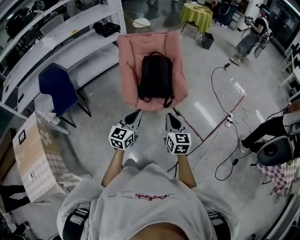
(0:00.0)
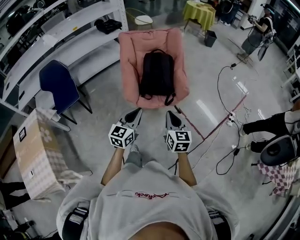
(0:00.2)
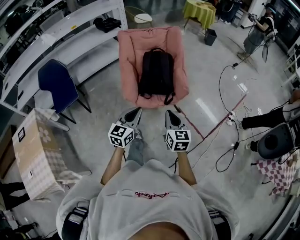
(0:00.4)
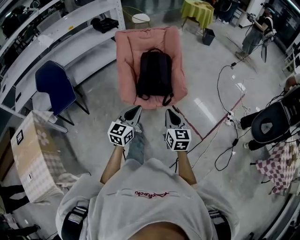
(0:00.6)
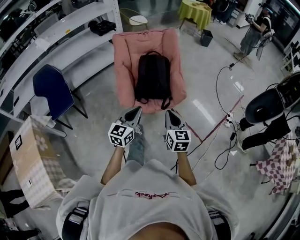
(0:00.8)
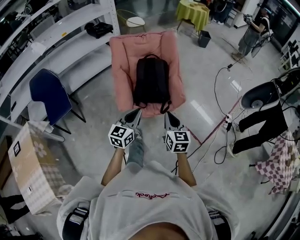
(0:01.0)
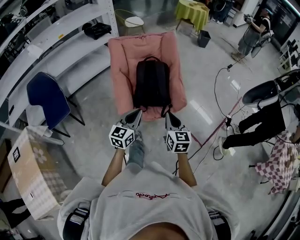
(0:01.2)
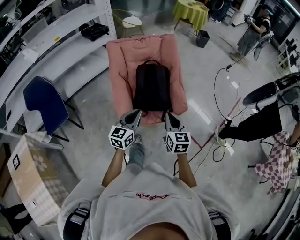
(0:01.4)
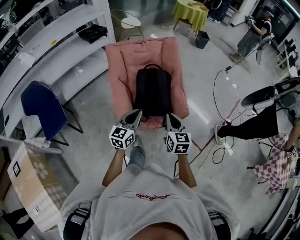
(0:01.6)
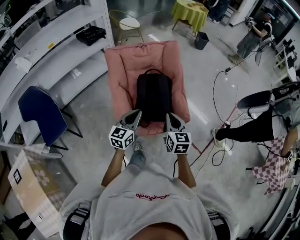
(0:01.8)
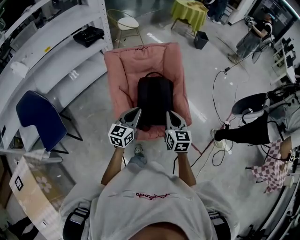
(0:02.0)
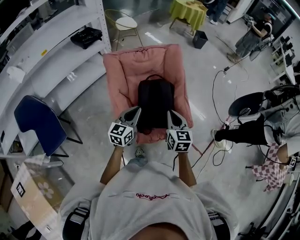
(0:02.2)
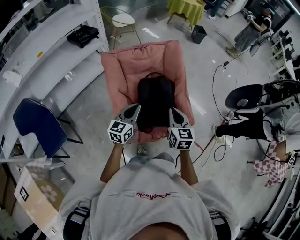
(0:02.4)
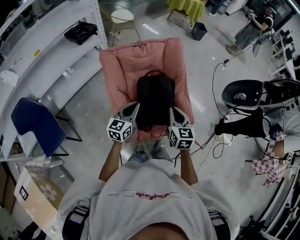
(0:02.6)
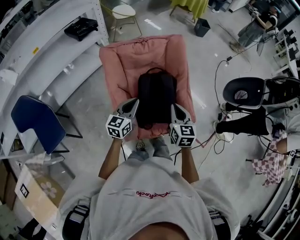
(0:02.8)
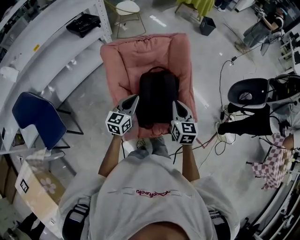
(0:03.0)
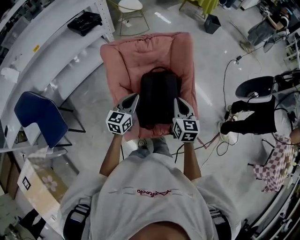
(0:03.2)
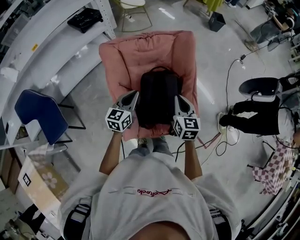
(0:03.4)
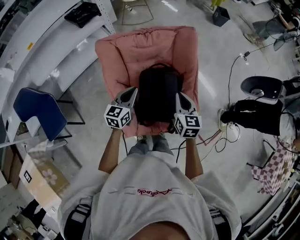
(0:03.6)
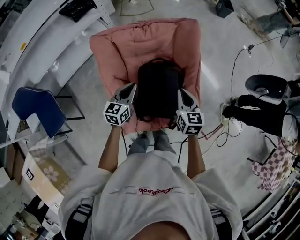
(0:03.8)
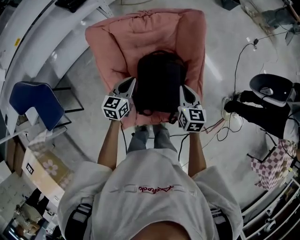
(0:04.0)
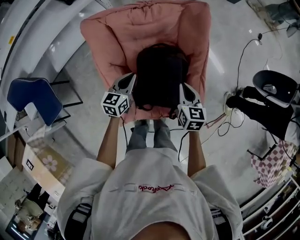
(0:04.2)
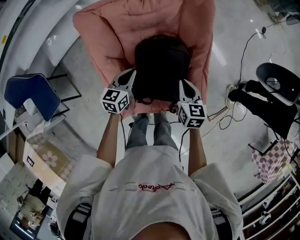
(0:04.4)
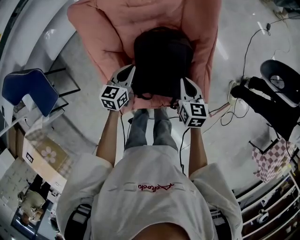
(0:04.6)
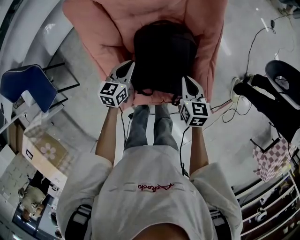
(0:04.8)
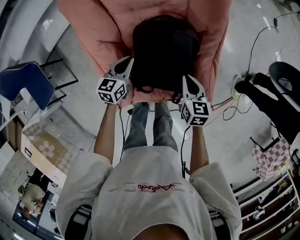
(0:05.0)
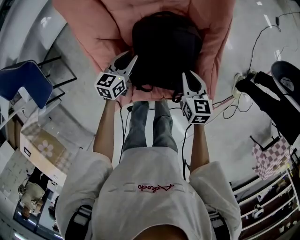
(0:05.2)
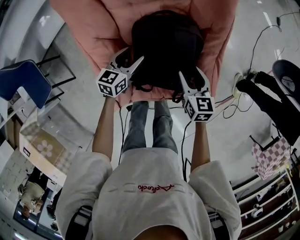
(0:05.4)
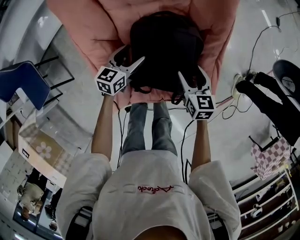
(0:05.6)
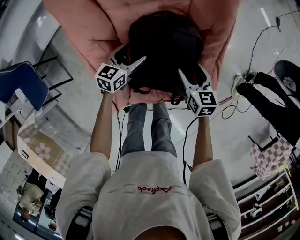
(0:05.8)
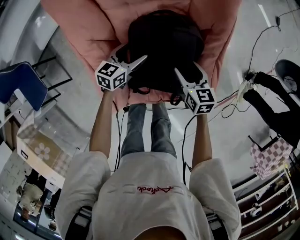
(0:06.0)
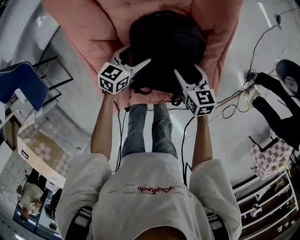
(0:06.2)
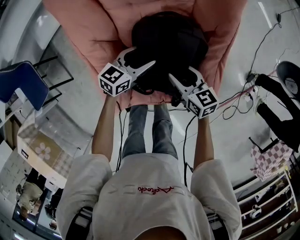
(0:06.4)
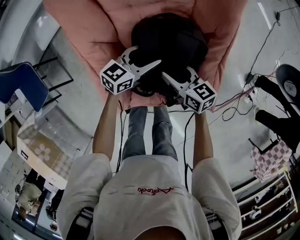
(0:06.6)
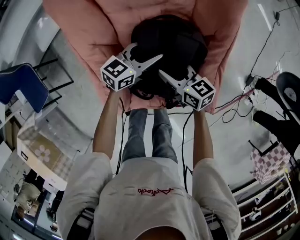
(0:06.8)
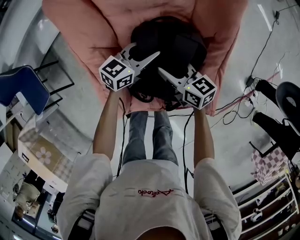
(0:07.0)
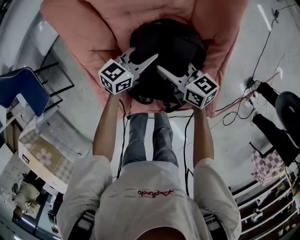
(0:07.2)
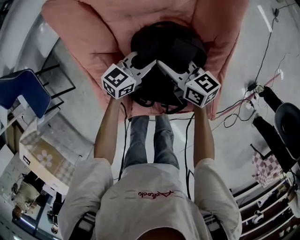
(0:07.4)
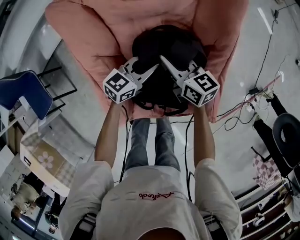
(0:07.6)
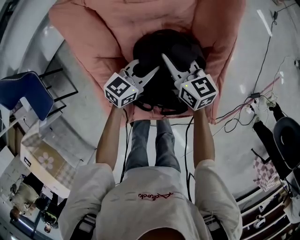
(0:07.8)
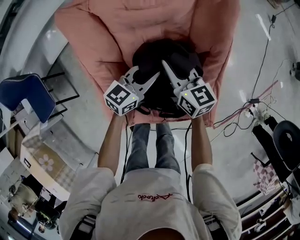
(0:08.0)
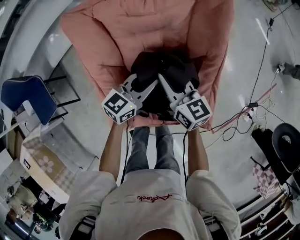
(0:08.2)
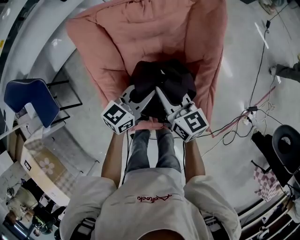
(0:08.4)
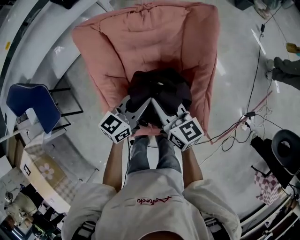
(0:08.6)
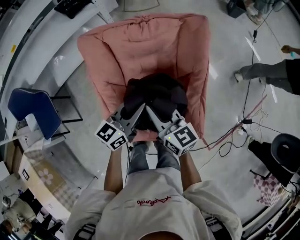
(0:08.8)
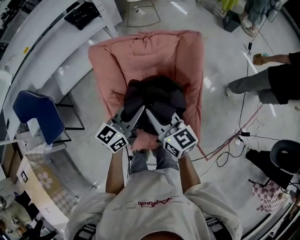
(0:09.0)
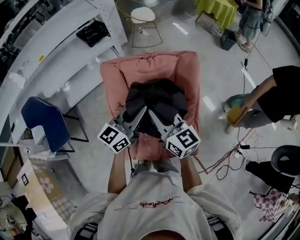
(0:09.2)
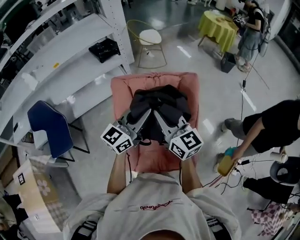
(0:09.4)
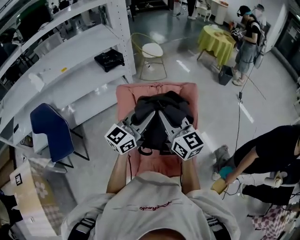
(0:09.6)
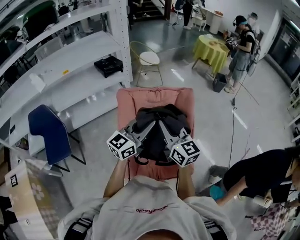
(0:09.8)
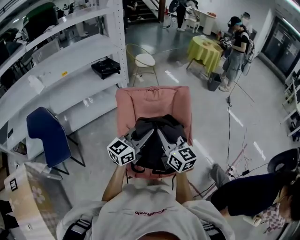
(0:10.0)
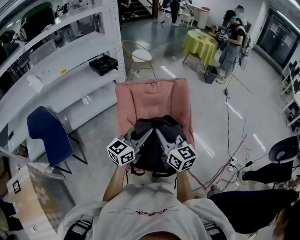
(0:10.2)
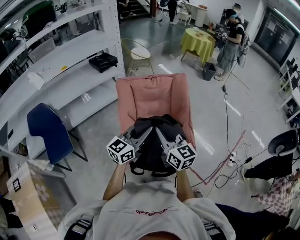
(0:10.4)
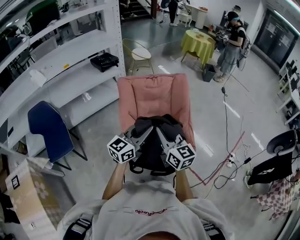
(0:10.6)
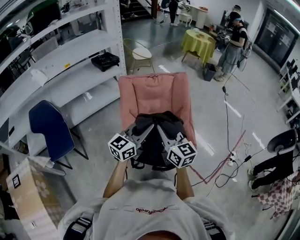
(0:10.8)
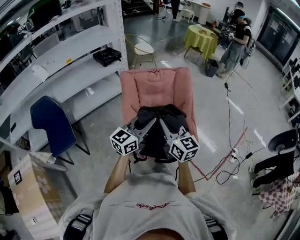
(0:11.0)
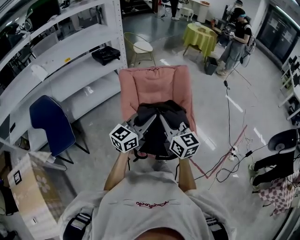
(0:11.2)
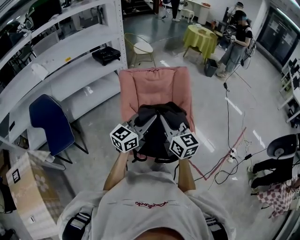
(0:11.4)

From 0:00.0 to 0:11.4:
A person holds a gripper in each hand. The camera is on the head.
From 0:00.0 to 0:01.4: The grippers both shift forward by about 20 cm.
From 0:01.4 to 0:02.8: Both grippers travel together forward and to the left, roughly 25 cm.
From 0:02.8 to 0:04.2: The left gripper heads downward and forward, covering about 20 cm, while the right gripper moves forward and downward, about 20 cm.
From 0:04.2 to 0:05.6: Both grippers move downward, about 15 cm. The left gripper opens its fingers. The right gripper opens its fingers.
From 0:05.6 to 0:07.2: The left gripper shifts some 10 cm to the right and forward, and closes its fingers, while the right gripper travels to the left and forward by some 15 cm, and turns by approximately 40 degrees.
From 0:07.2 to 0:08.6: The left gripper travels upward and backward by roughly 15 cm, while the right gripper shifts approximately 15 cm upward, and closes up.
From 0:08.6 to 0:10.0: Both grippers travel together upward and backward, about 35 cm. The left gripper swivels approximately 20 degrees, while the right gripper turns by about 20 degrees.
From 0:10.0 to 0:11.4: Both grippers travel together backward, roughly 10 cm.

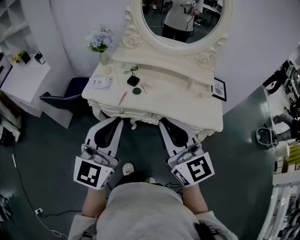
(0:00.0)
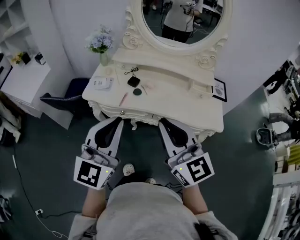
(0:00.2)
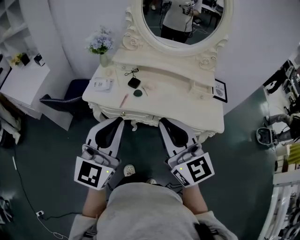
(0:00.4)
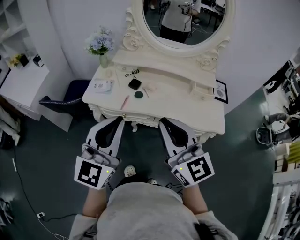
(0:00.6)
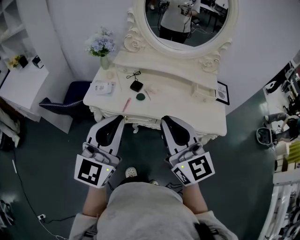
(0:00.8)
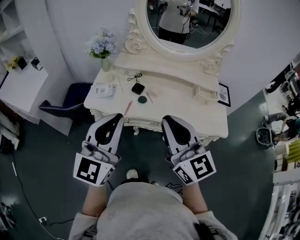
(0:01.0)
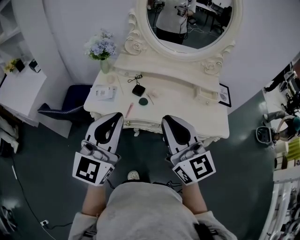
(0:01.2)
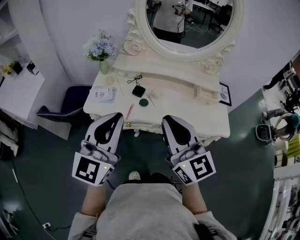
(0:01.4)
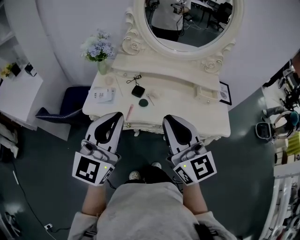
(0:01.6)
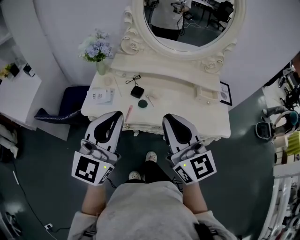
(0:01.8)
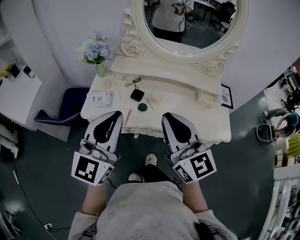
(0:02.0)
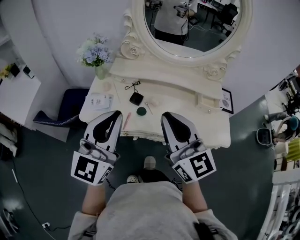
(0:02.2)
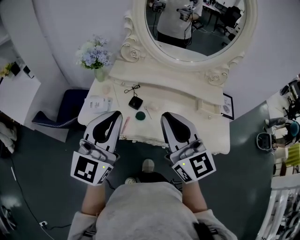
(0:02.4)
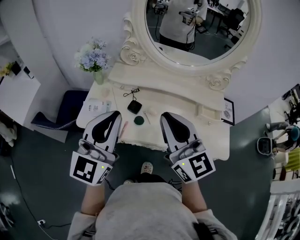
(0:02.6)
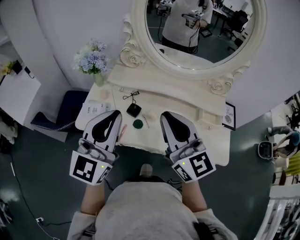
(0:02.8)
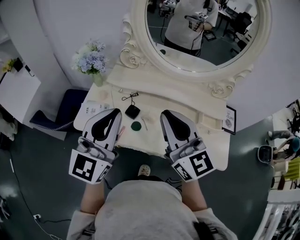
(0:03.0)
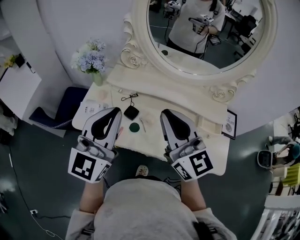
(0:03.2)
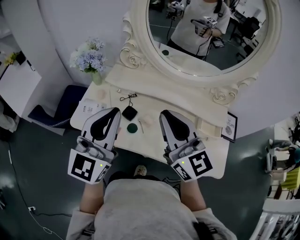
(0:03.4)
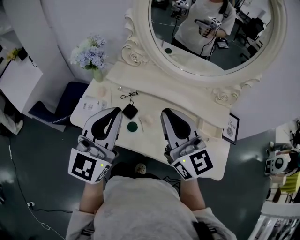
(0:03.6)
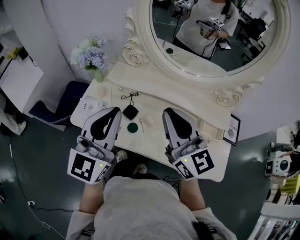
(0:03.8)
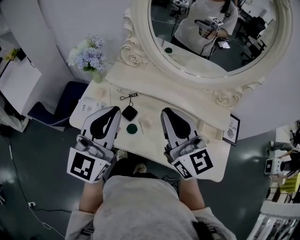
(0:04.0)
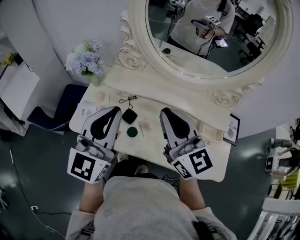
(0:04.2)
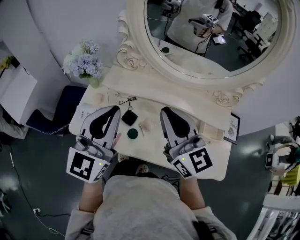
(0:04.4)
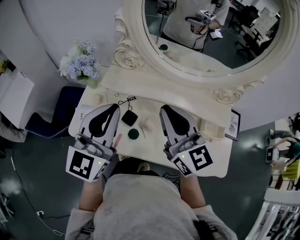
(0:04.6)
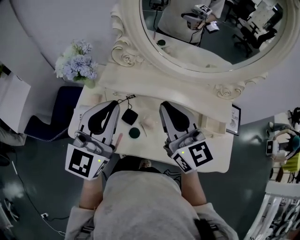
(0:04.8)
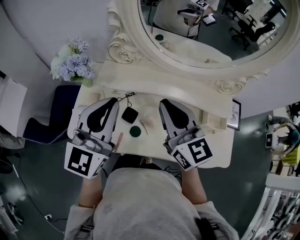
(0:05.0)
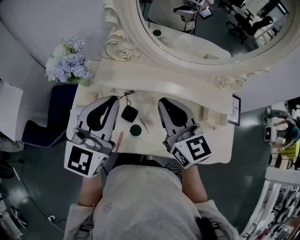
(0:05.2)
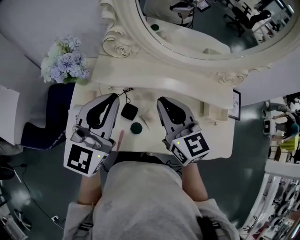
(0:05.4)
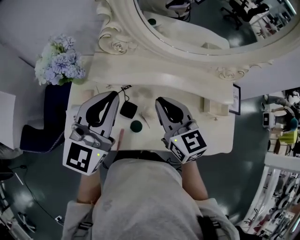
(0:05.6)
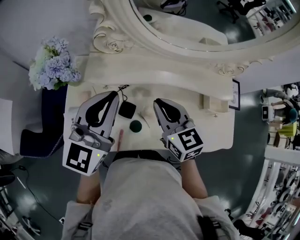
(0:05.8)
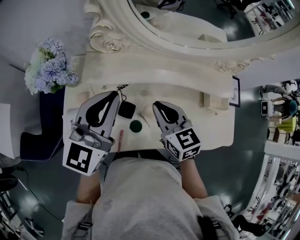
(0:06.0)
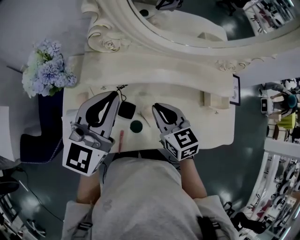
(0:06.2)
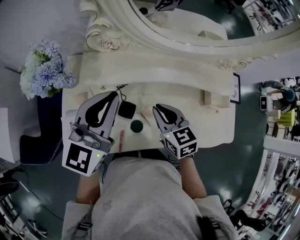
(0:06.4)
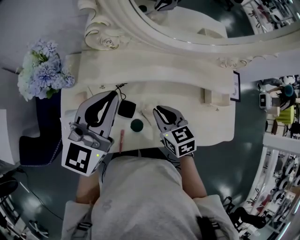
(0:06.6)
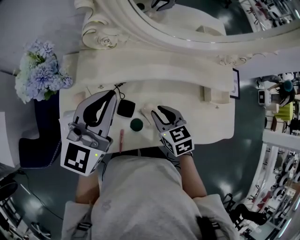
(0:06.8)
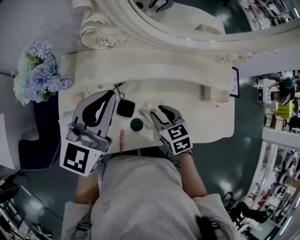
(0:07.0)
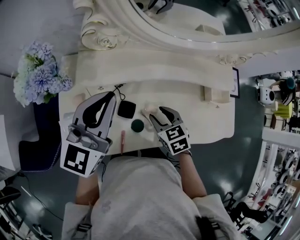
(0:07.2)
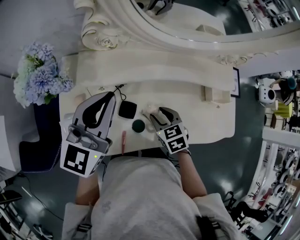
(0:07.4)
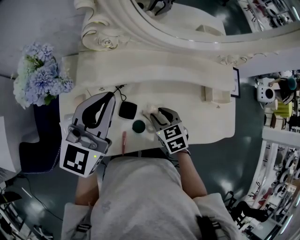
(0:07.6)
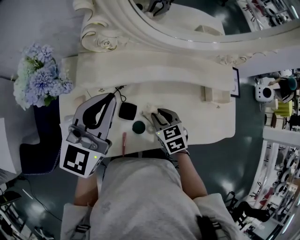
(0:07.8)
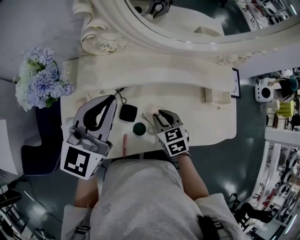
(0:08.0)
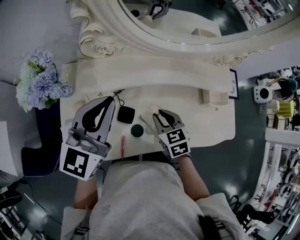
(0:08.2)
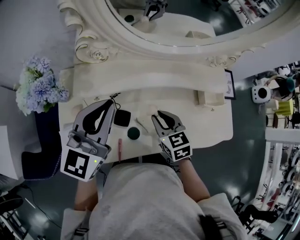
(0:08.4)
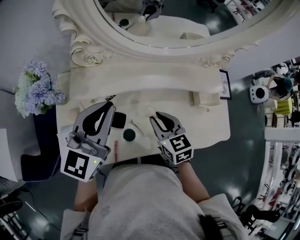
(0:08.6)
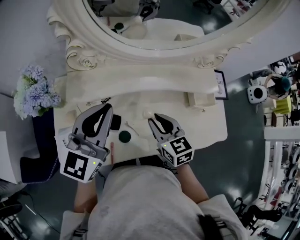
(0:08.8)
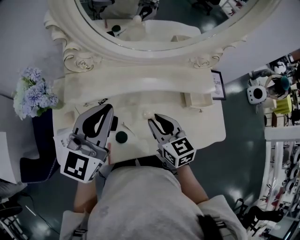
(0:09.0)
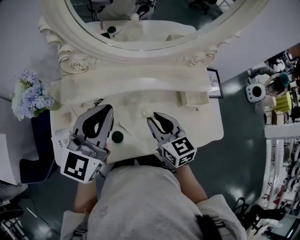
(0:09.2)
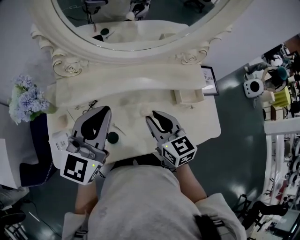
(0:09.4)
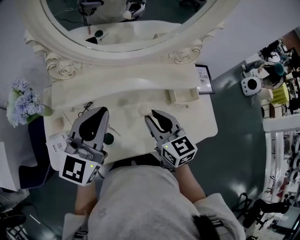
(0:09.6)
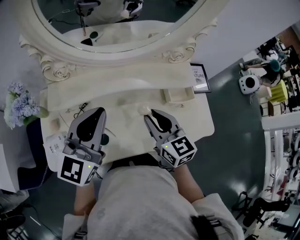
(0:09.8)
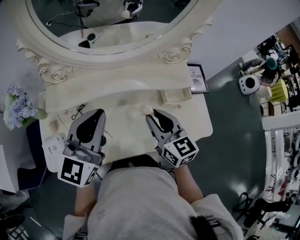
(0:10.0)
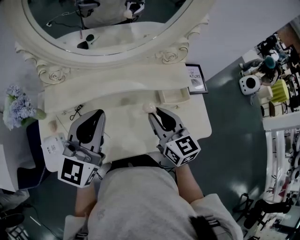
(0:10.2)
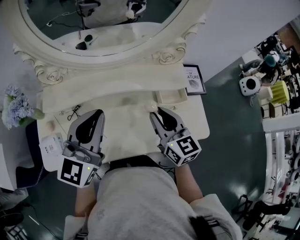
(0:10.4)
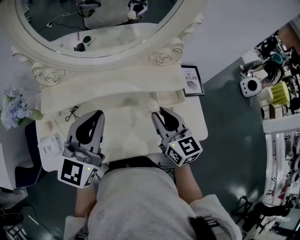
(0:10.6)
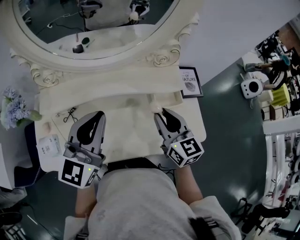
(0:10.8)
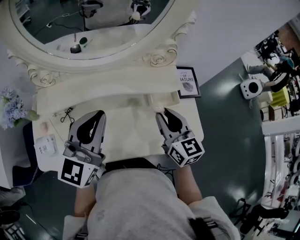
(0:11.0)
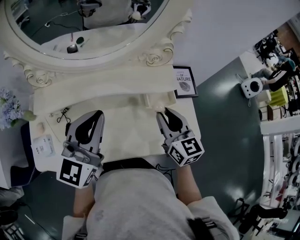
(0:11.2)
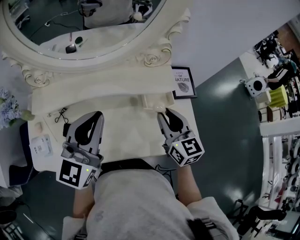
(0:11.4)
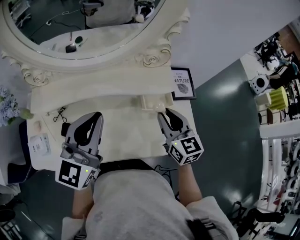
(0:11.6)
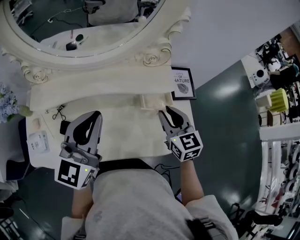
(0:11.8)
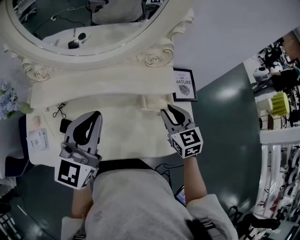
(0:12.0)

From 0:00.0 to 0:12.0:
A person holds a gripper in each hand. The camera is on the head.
From 0:00.0 to 0:01.6: The grippers both shift forward and to the left by about 10 cm.
From 0:01.6 to 0:03.0: Both grippers move forward, roughly 15 cm.
From 0:03.0 to 0:04.4: Both grippers move forward, approximately 10 cm.
From 0:04.4 to 0:06.0: The right gripper moves downward, approximately 20 cm, and points its fingers about 30 degrees further downward. Meanwhile the left gripper goes some 15 cm forward and downward, and swivels some 20 degrees.
From 0:06.0 to 0:07.6: The right gripper heads downward, covering about 15 cm, changes its angle by about 30 degrees, and opens.
From 0:07.6 to 0:09.0: The right gripper heads upward and to the right, covering about 15 cm, and rotates some 30 degrees, while the left gripper travels to the right by some 10 cm.
From 0:09.0 to 0:10.4: The left gripper travels to the right by some 10 cm, while the right gripper heads to the right and upward, covering some 15 cm.
From 0:10.4 to 0:12.0: The right gripper travels to the right by about 15 cm, while the left gripper goes some 10 cm to the right.
